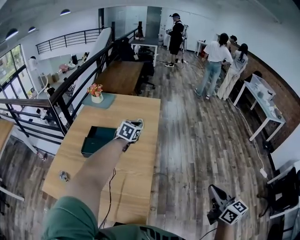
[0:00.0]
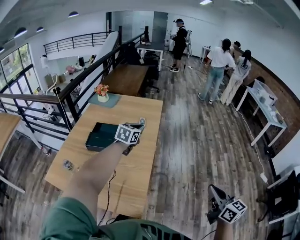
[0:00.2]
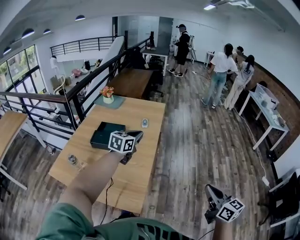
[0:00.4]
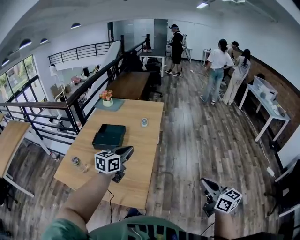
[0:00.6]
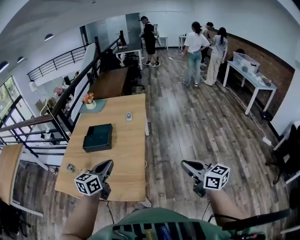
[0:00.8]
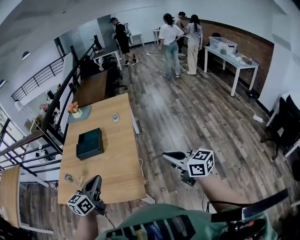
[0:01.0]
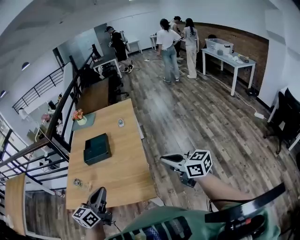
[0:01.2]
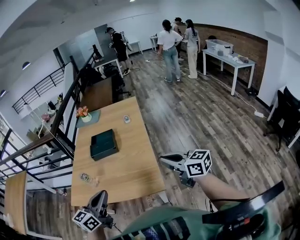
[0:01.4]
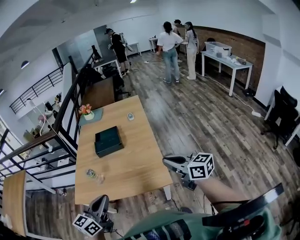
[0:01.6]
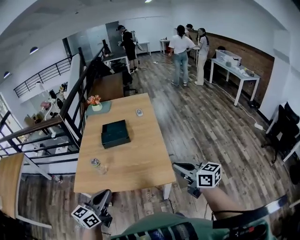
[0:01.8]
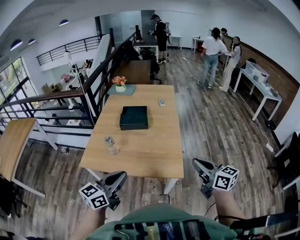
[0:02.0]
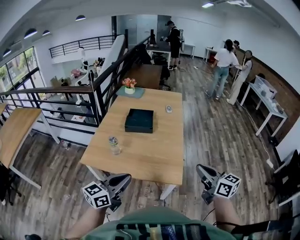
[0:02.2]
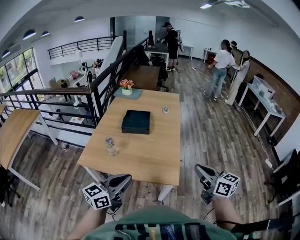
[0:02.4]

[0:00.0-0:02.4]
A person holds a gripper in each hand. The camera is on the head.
0.0 to 1.2 s: The left gripper is displaced backward by roughly 50 cm, and turns by about 30 degrees. Meanwhile the right gripper goes about 20 cm to the left and backward, and turns by roughly 20 degrees.
1.2 to 2.4 s: The right gripper shifts approximately 15 cm to the left and backward; the left gripper travels backward and to the left by about 15 cm.

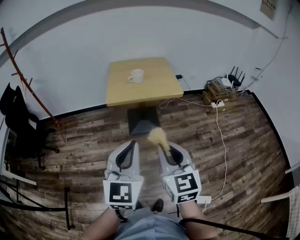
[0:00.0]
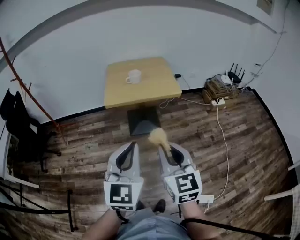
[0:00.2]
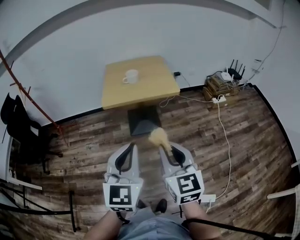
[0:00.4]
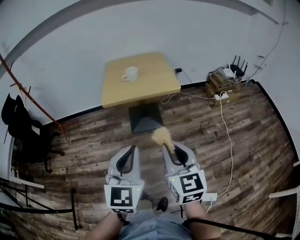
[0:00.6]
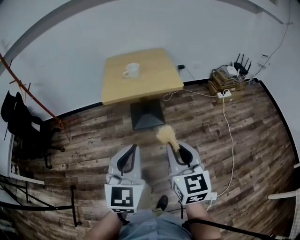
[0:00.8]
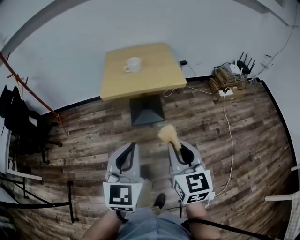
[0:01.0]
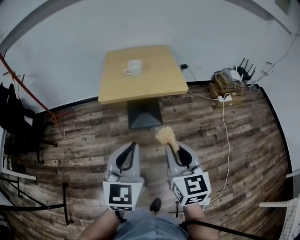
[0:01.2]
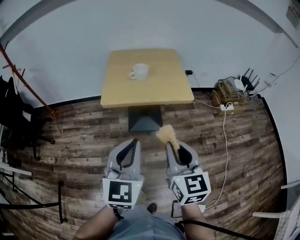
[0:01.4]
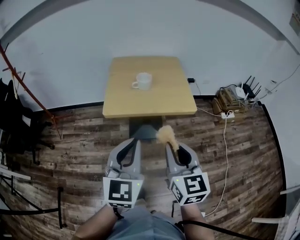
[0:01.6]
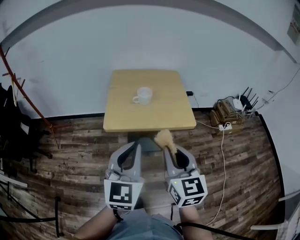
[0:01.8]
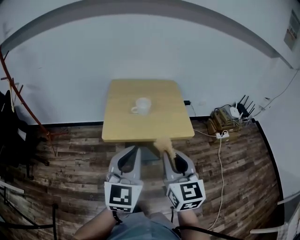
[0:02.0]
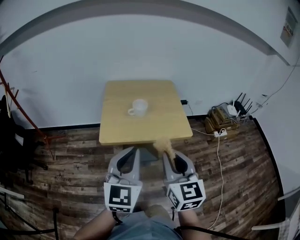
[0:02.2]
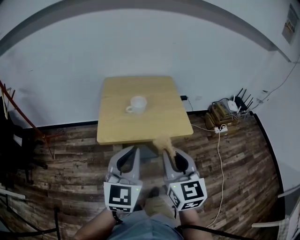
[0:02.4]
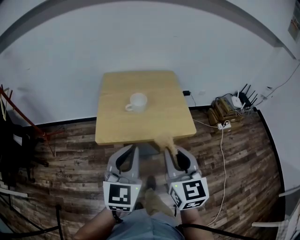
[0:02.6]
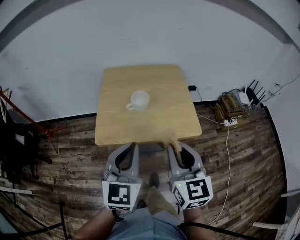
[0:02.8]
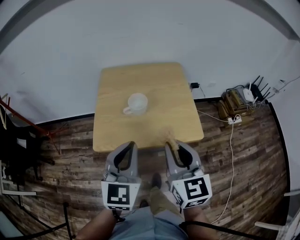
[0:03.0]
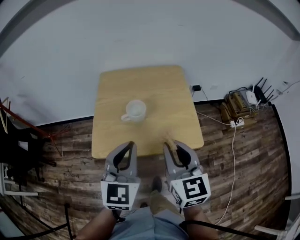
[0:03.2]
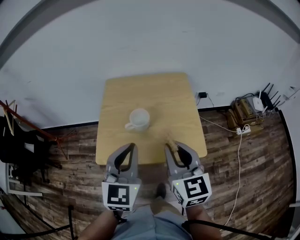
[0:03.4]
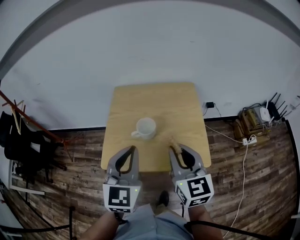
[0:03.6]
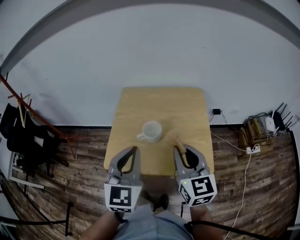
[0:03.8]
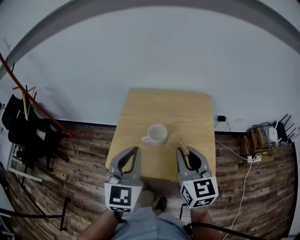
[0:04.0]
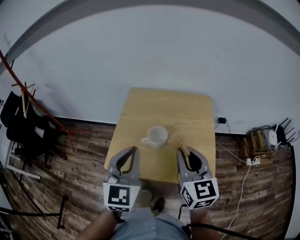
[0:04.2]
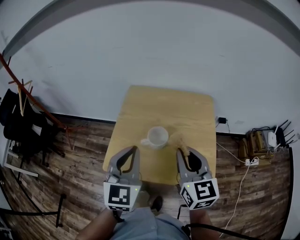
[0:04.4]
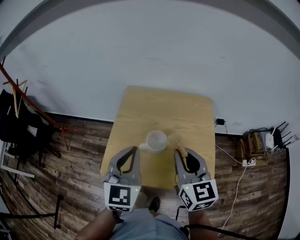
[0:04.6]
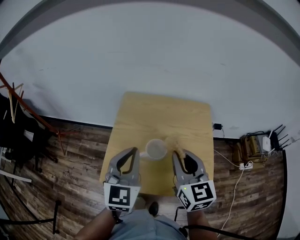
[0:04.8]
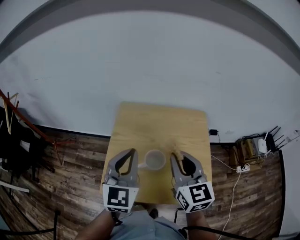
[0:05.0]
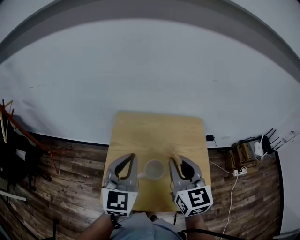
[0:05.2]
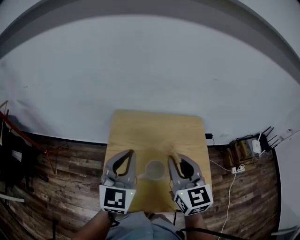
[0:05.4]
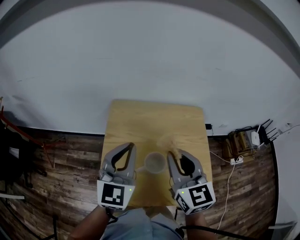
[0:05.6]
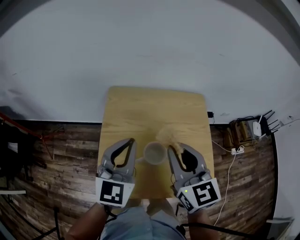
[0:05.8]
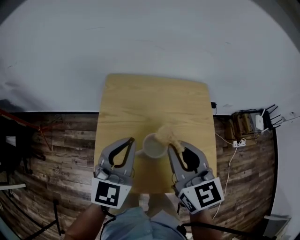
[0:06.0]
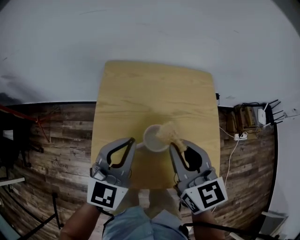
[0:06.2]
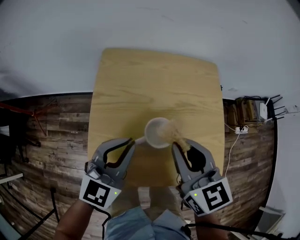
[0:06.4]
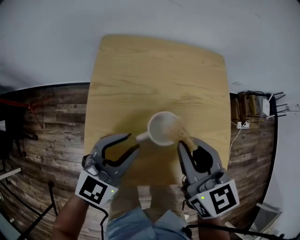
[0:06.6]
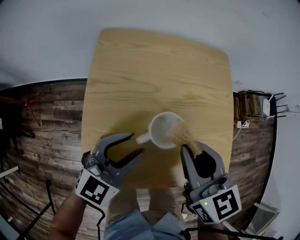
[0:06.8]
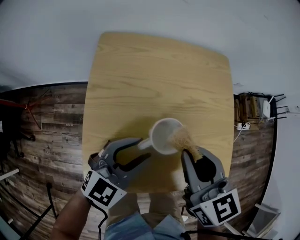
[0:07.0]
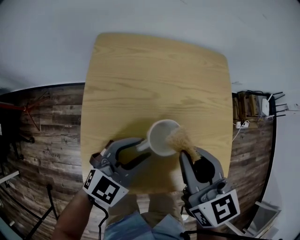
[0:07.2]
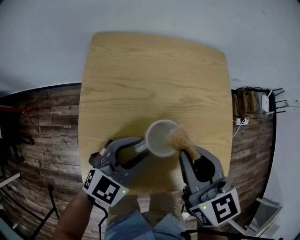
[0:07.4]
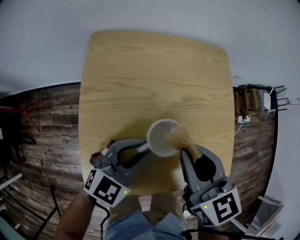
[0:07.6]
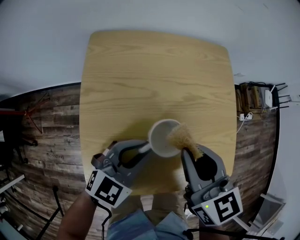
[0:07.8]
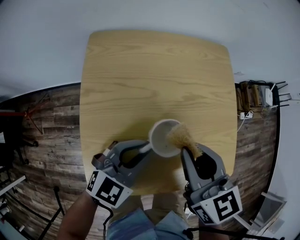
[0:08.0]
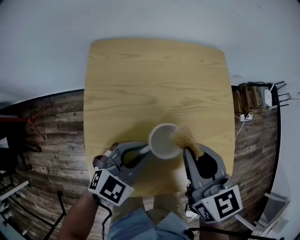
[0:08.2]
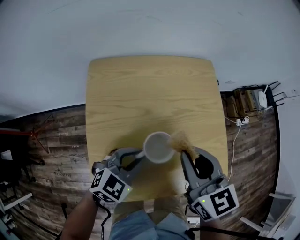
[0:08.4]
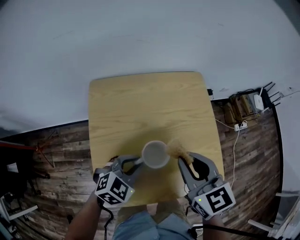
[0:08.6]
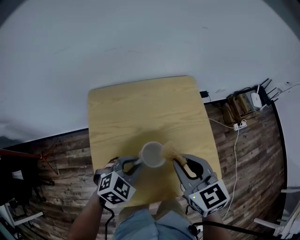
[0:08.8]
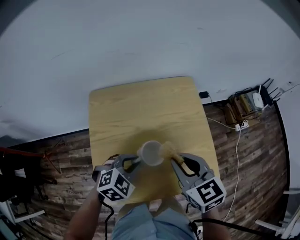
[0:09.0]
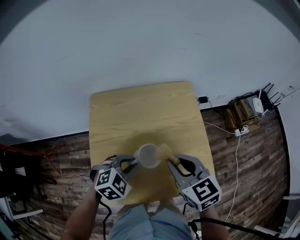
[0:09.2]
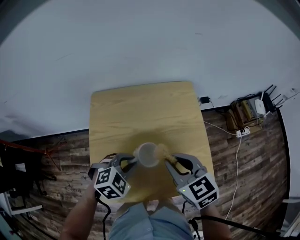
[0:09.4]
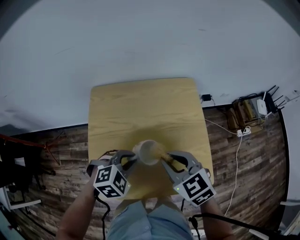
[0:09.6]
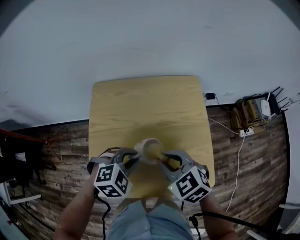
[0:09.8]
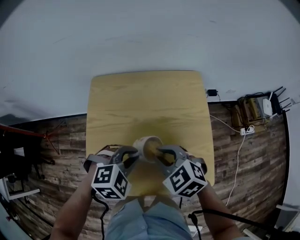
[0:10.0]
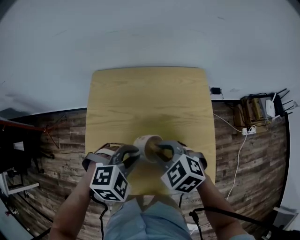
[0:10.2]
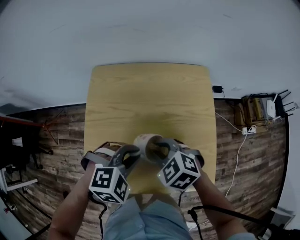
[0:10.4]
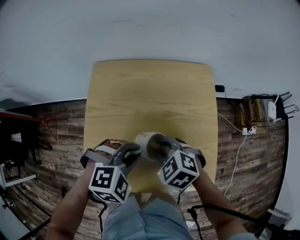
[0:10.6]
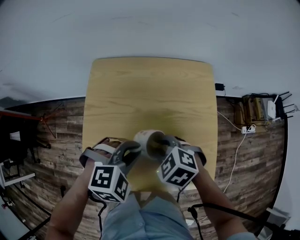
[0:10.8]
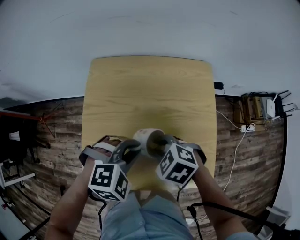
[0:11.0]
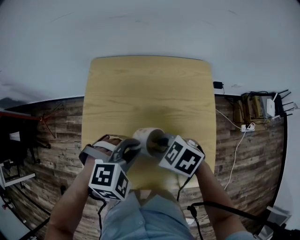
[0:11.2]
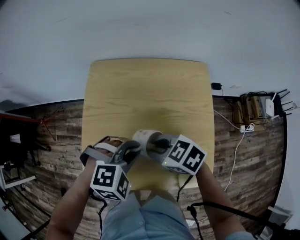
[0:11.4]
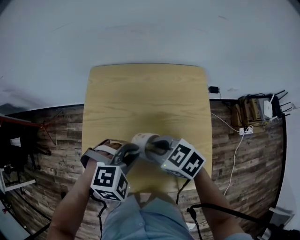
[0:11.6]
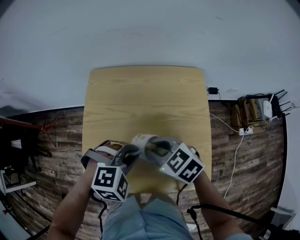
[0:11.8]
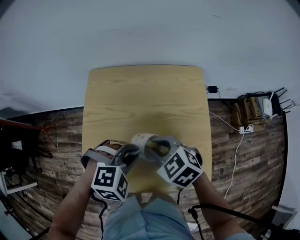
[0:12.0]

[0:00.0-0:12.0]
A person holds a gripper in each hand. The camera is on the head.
0.0 to 1.6 s: The two grippers go some 20 cm forward.
1.6 to 3.0 s: The grippers both shift forward by about 20 cm.
3.0 to 4.4 s: Both grippers travel together forward, approximately 15 cm.
4.4 to 6.0 s: The left gripper travels forward by some 15 cm. The right gripper is displaced forward and to the left by some 10 cm.
6.0 to 7.6 s: The right gripper moves downward, about 10 cm; the left gripper shifts about 15 cm downward, rotates approximately 30 degrees, and opens up.
7.6 to 9.0 s: The left gripper changes its angle by some 30 degrees, while the right gripper goes approximately 5 cm to the right.
9.0 to 10.4 s: The right gripper shifts approximately 10 cm downward and to the left, and rotates roughly 50 degrees.

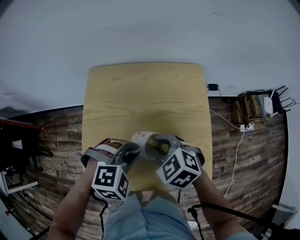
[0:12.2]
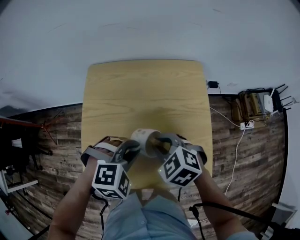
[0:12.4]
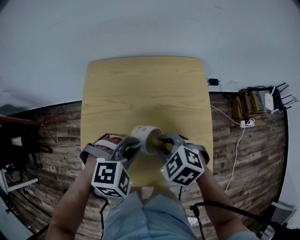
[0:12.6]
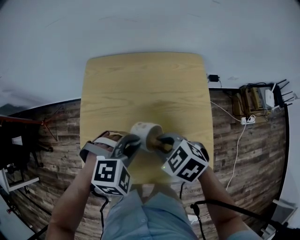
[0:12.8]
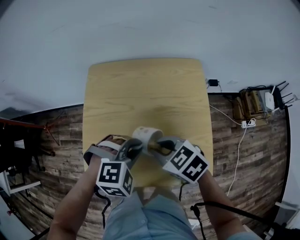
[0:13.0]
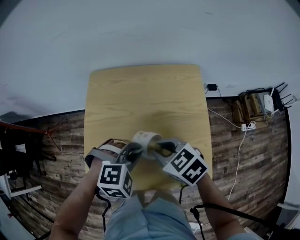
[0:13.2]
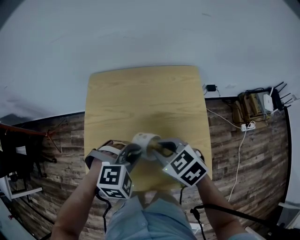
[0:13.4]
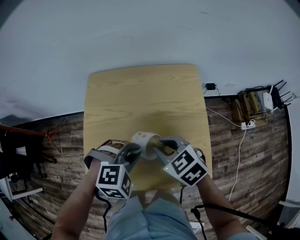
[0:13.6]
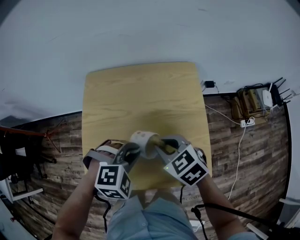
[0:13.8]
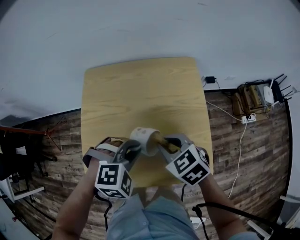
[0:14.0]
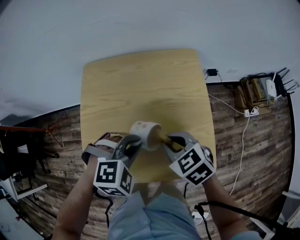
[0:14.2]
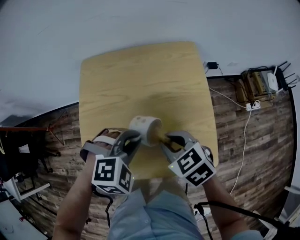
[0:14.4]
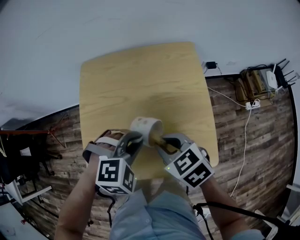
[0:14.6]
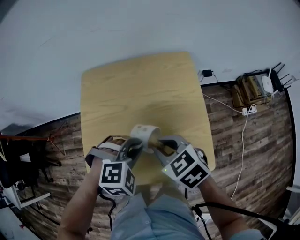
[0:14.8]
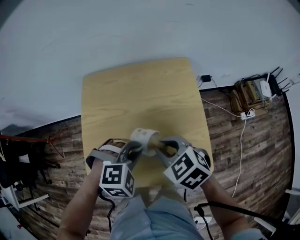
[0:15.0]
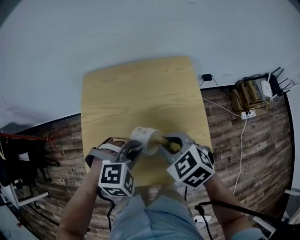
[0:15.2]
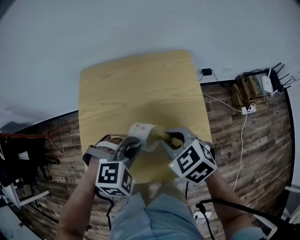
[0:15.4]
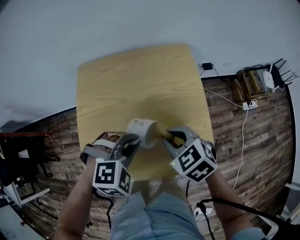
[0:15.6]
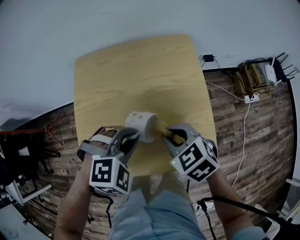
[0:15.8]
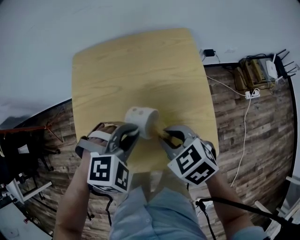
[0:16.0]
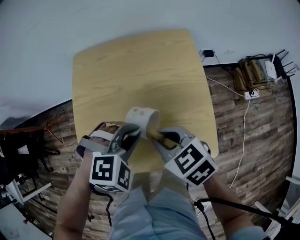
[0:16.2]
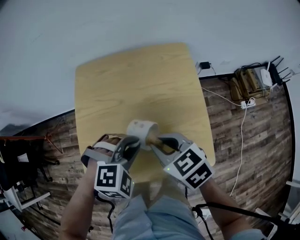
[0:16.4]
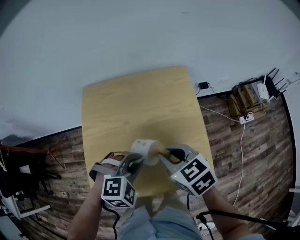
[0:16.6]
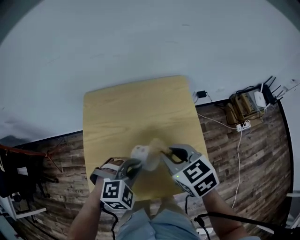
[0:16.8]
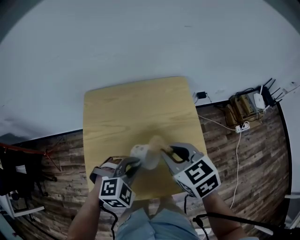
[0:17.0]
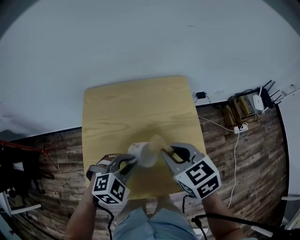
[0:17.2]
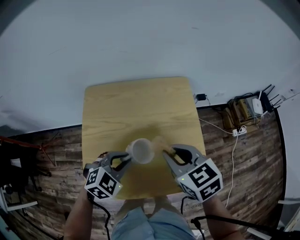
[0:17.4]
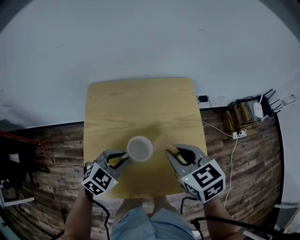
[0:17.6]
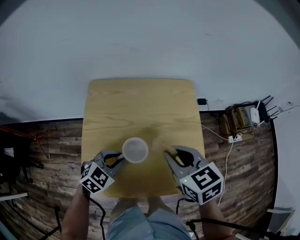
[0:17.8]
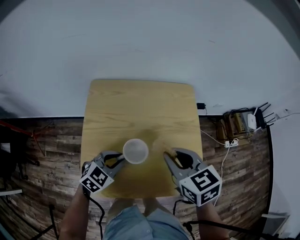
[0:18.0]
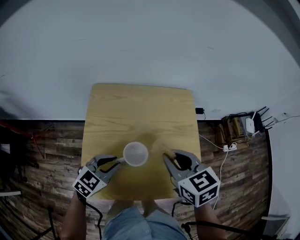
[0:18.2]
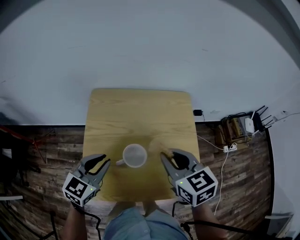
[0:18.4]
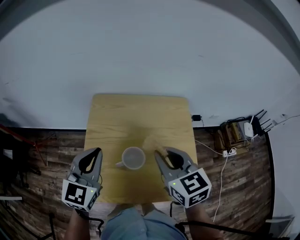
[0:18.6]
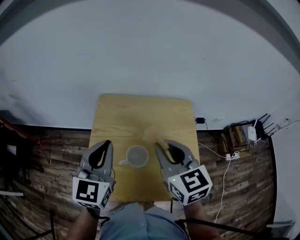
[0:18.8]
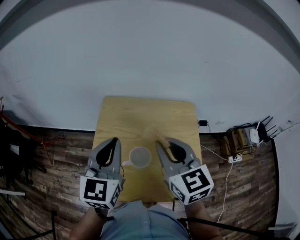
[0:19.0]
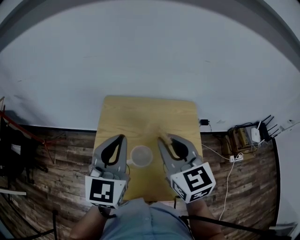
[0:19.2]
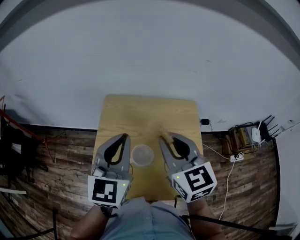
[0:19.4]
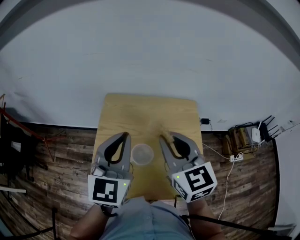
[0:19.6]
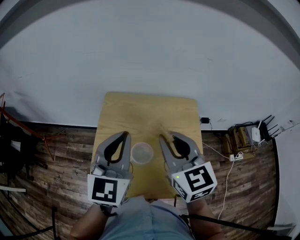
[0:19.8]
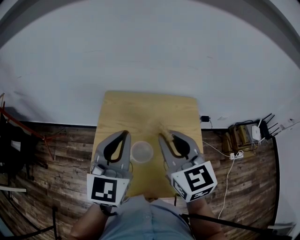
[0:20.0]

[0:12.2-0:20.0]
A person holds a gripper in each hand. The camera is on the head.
12.2 to 13.8 s: There are only small adjustments of the grippers.
13.8 to 15.4 s: The grippers stay close to where they were, moving slightly.
15.4 to 16.8 s: The right gripper ends up approximately 5 cm from where it was.
16.8 to 18.4 s: The right gripper travels upward by some 5 cm, while the left gripper goes some 15 cm to the left and upward, and rolls counterclockwise, seen from behind, by approximately 50 degrees.
18.4 to 20.0 s: The right gripper shifts some 10 cm upward, and rotates approximately 20 degrees. Meanwhile the left gripper is displaced upward by some 15 cm, and swivels about 30 degrees.

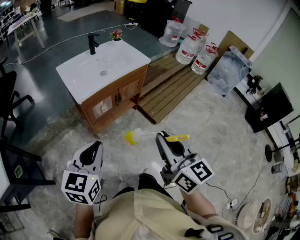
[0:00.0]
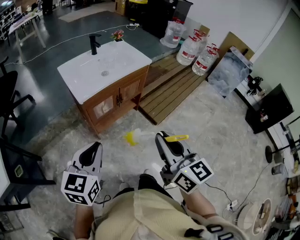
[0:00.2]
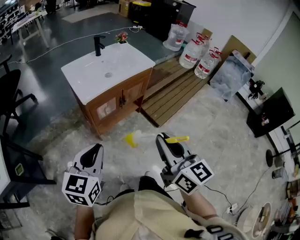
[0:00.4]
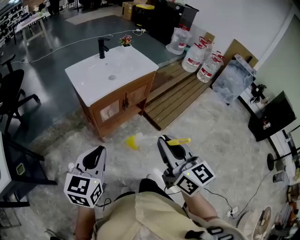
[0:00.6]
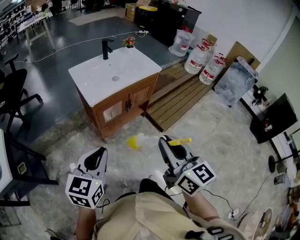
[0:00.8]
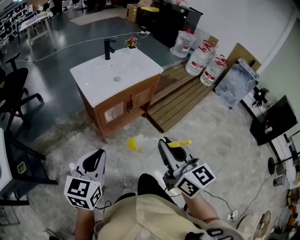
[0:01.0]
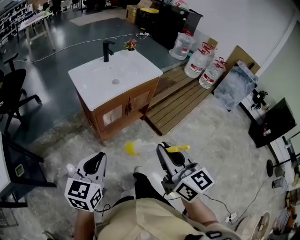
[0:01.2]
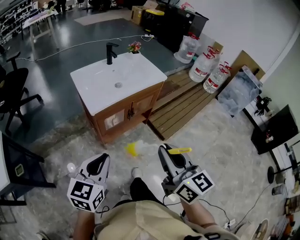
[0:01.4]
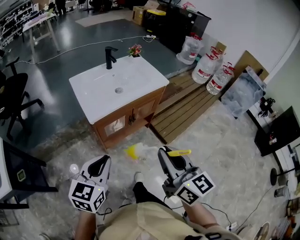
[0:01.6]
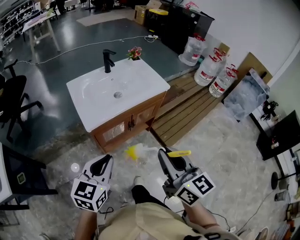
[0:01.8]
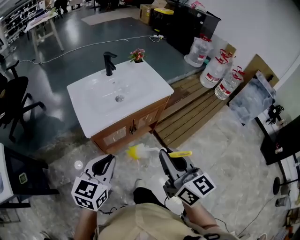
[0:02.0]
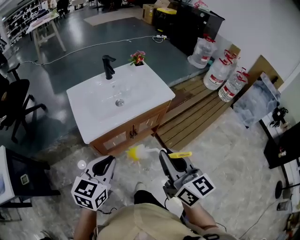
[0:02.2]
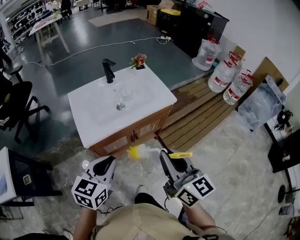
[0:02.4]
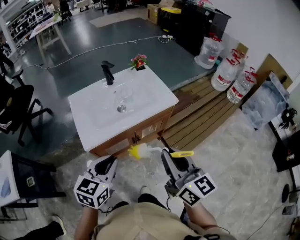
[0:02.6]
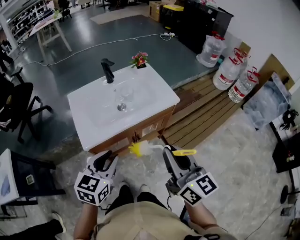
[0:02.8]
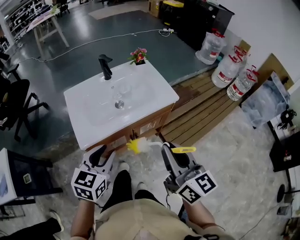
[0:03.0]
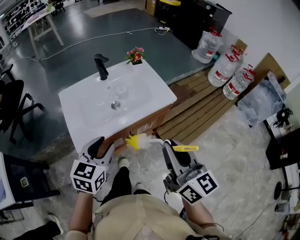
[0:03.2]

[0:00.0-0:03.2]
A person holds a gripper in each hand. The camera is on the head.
0.0 to 1.6 s: The two grippers go approximately 10 cm forward.
1.6 to 3.2 s: The grippers both shift forward by some 25 cm. The left gripper opens its fingers.
